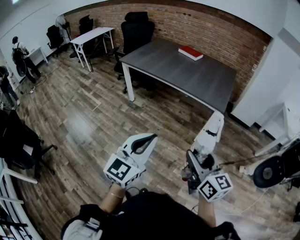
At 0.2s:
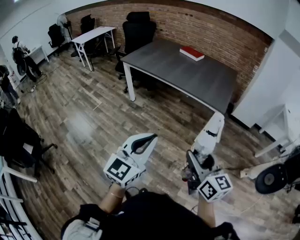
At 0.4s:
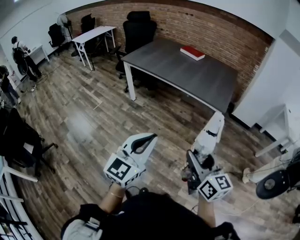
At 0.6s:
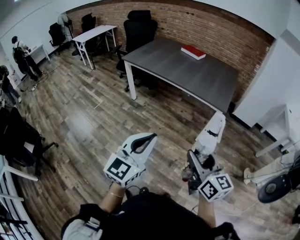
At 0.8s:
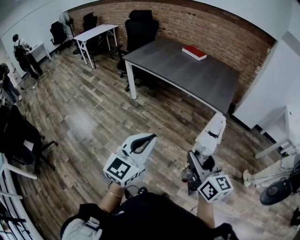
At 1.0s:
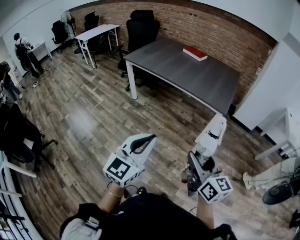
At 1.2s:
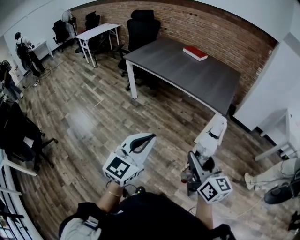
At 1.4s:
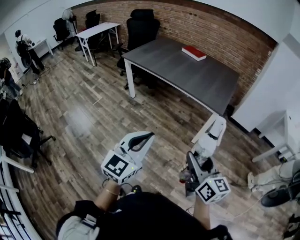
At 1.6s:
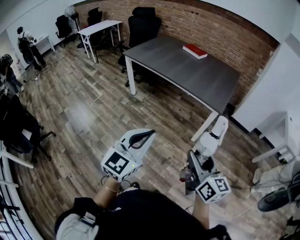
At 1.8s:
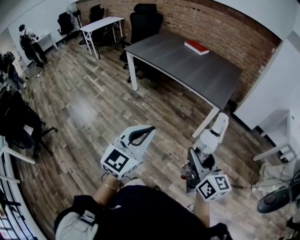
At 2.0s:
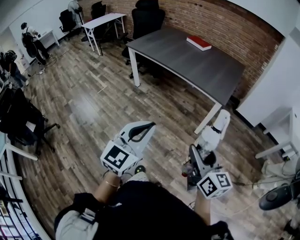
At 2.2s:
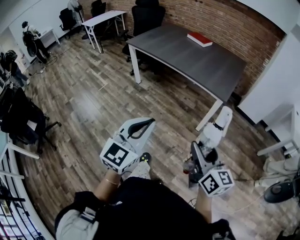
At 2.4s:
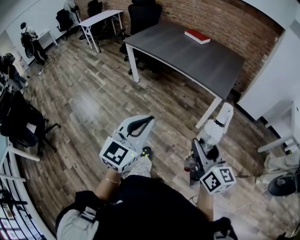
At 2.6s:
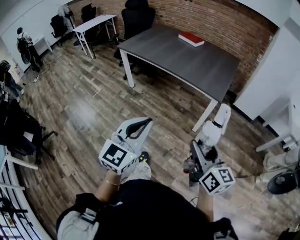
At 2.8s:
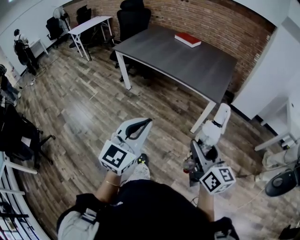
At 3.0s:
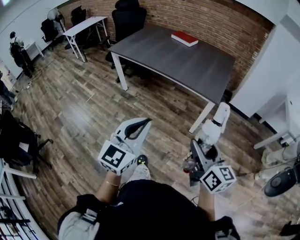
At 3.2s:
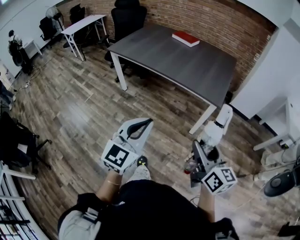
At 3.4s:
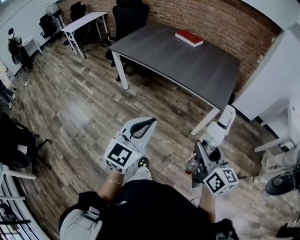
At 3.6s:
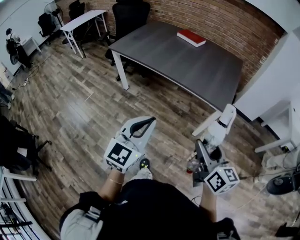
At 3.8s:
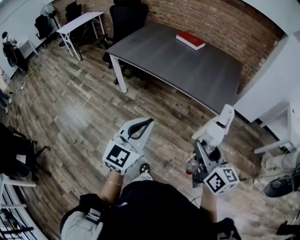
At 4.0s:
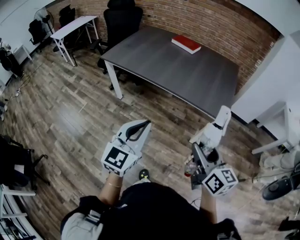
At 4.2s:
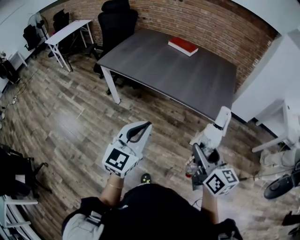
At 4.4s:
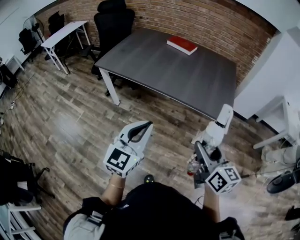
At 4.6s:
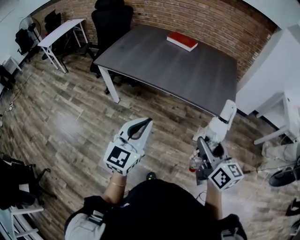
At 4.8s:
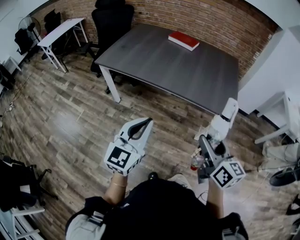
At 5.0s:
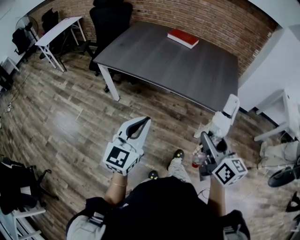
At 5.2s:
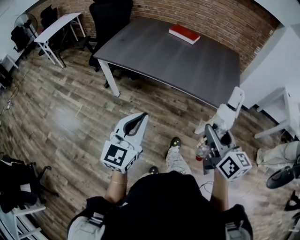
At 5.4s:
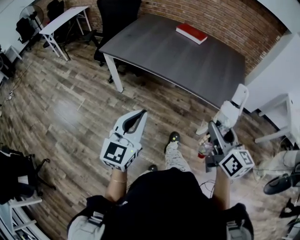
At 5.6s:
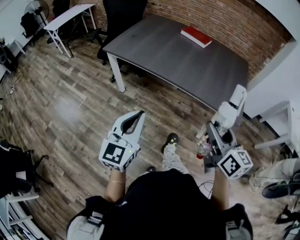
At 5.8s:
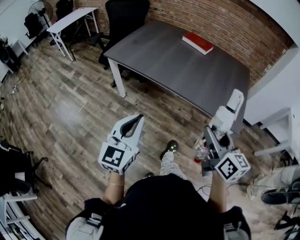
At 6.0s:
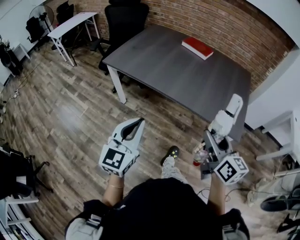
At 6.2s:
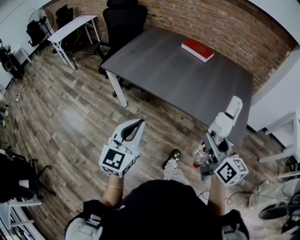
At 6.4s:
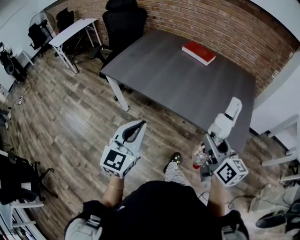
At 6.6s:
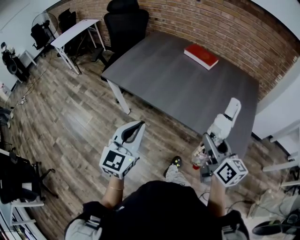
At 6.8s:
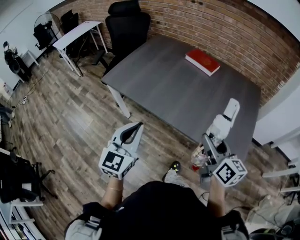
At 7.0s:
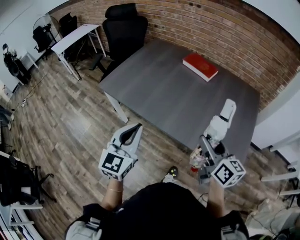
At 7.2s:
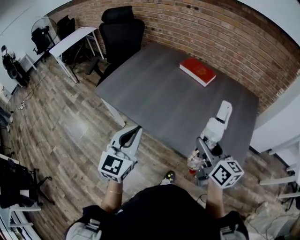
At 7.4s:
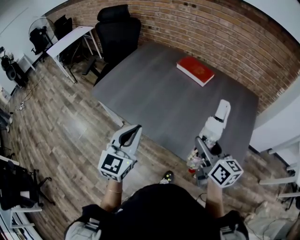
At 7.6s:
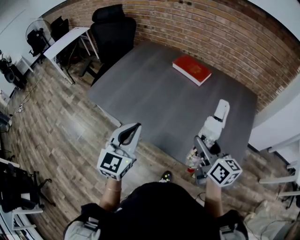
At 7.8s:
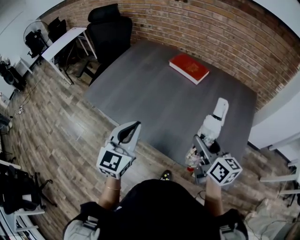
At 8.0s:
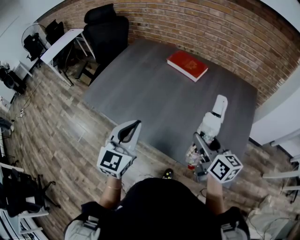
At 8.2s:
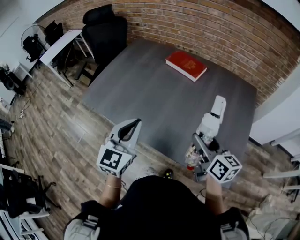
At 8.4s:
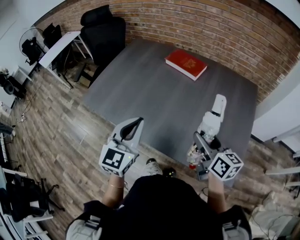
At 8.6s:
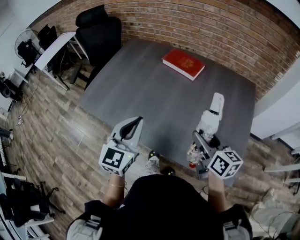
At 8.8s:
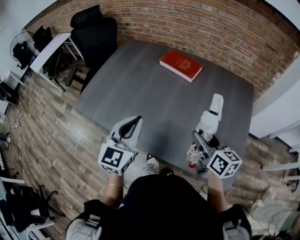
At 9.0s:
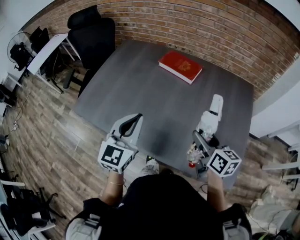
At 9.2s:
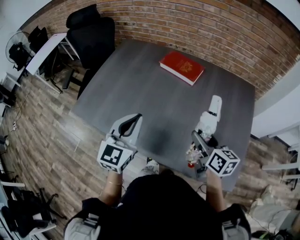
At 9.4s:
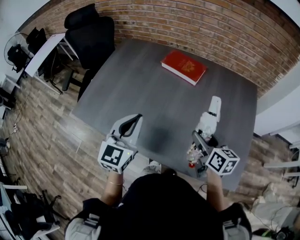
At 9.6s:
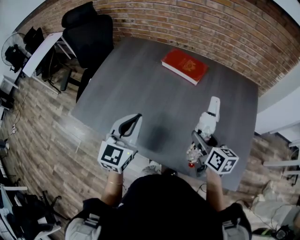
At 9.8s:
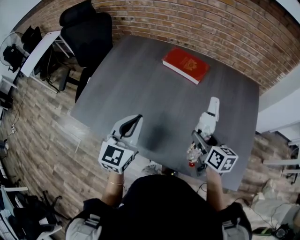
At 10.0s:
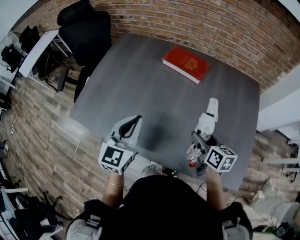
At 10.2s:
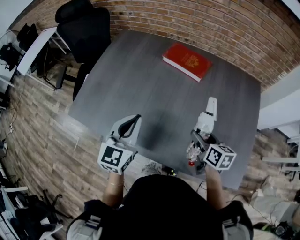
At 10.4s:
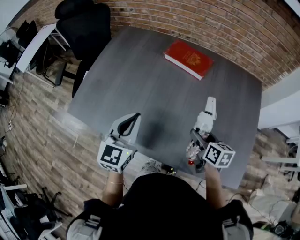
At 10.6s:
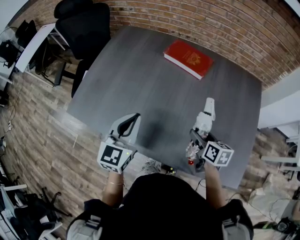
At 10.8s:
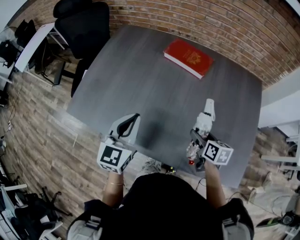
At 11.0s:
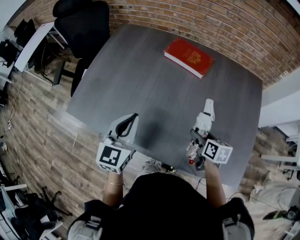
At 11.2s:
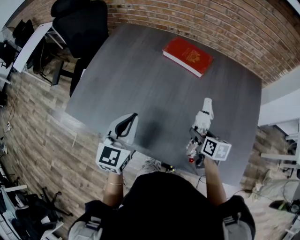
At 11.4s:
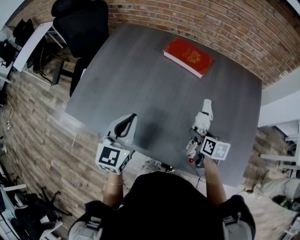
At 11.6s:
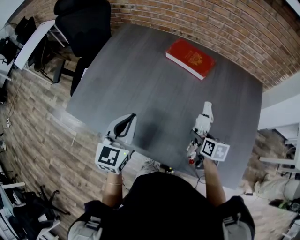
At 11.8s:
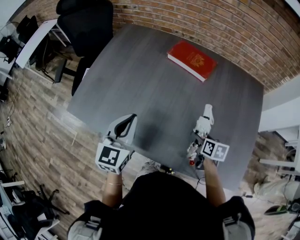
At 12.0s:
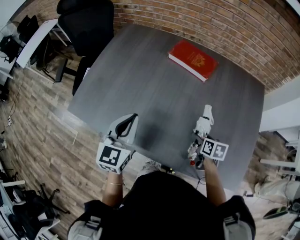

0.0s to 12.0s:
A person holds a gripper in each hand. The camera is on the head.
0.0s to 1.6s: The two grippers go about 5 cm to the right.
1.6s to 3.0s: Both grippers move forward, some 10 cm.
3.0s to 4.4s: Both grippers move forward and to the left, roughly 30 cm.
4.4s to 6.0s: The right gripper is displaced forward by some 15 cm. Meanwhile the left gripper goes approximately 15 cm to the left and forward.
6.0s to 7.6s: The right gripper moves forward, some 30 cm. The left gripper shifts about 35 cm forward and to the right.
7.6s to 9.0s: Both grippers move forward, roughly 10 cm.
9.0s to 10.4s: The right gripper heads downward, forward and to the left, covering about 15 cm, while the left gripper is displaced forward, to the left and downward by some 10 cm.
10.4s to 12.0s: The right gripper heads downward, covering some 10 cm.

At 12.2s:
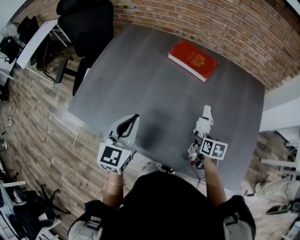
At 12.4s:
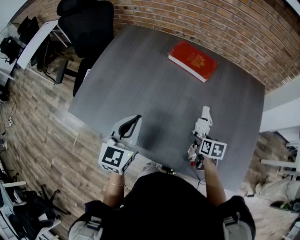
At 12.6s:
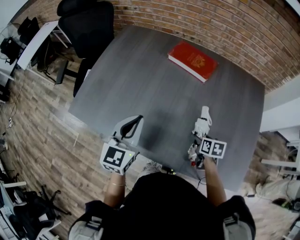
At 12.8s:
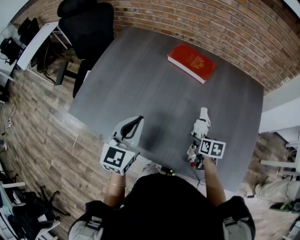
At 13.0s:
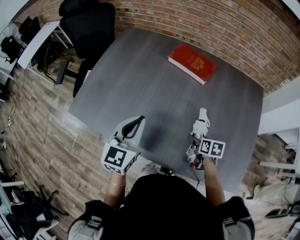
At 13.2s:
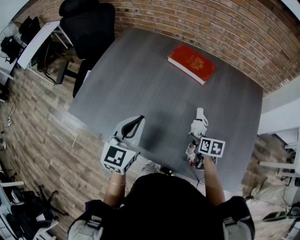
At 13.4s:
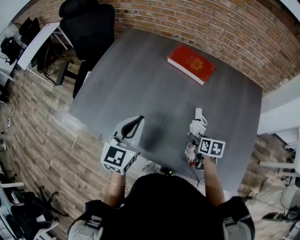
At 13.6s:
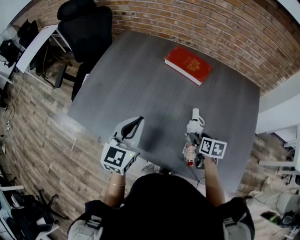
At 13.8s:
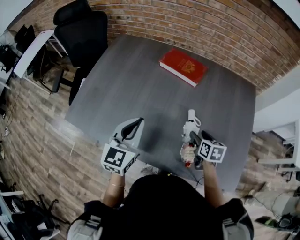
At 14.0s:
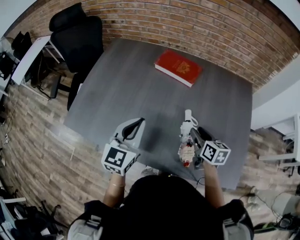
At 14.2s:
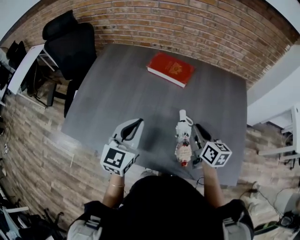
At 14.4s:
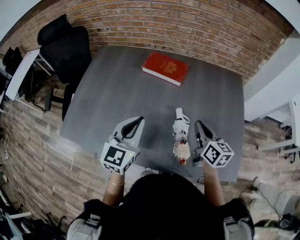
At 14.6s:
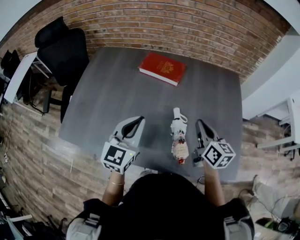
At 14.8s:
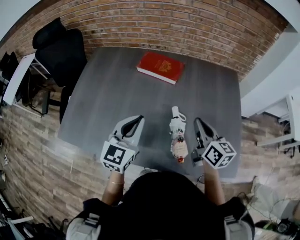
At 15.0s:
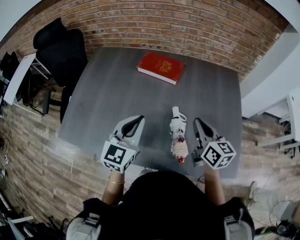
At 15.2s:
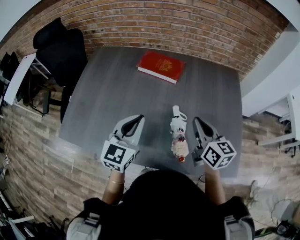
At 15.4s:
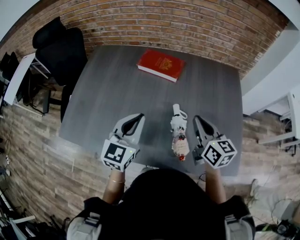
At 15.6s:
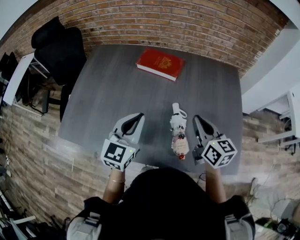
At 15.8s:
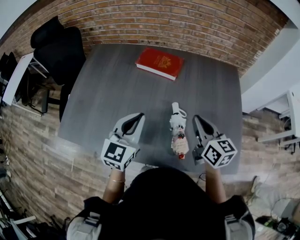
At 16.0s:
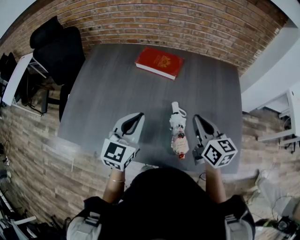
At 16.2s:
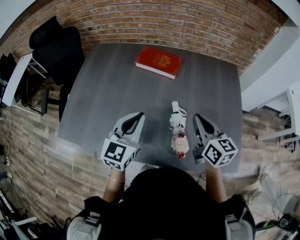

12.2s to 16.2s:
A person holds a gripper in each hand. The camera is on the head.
12.2s to 13.6s: The grippers stay close to where they were, moving slightly.
13.6s to 14.8s: The left gripper is displaced to the right by roughly 10 cm, while the right gripper moves upward, some 20 cm, tips its fingers upward by approximately 40 degrees, and closes up.
14.8s to 16.2s: The grippers move only a little.

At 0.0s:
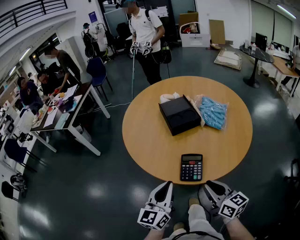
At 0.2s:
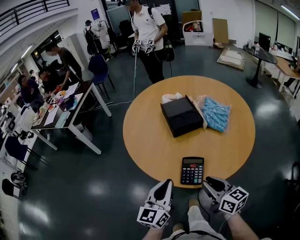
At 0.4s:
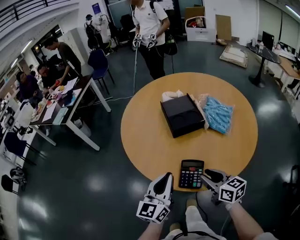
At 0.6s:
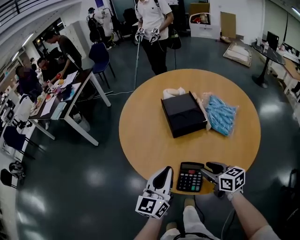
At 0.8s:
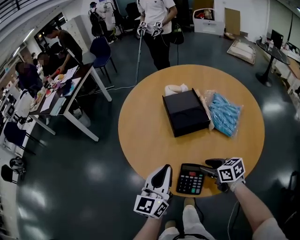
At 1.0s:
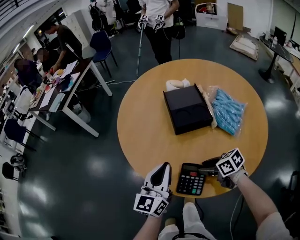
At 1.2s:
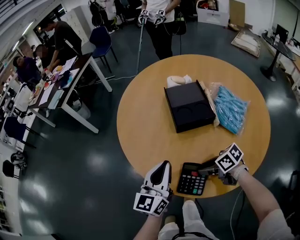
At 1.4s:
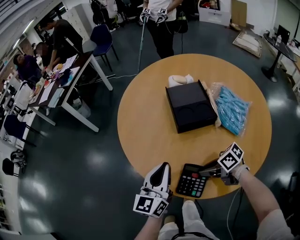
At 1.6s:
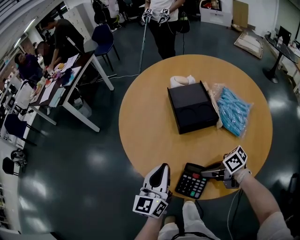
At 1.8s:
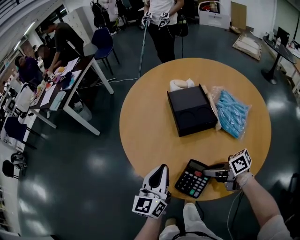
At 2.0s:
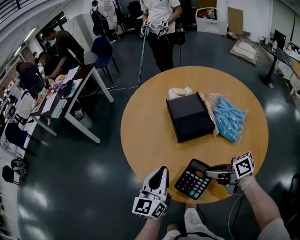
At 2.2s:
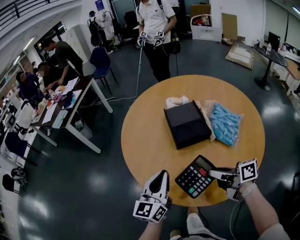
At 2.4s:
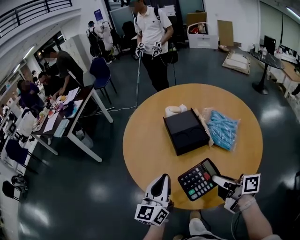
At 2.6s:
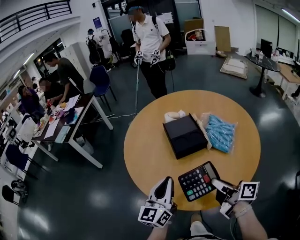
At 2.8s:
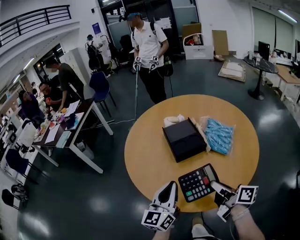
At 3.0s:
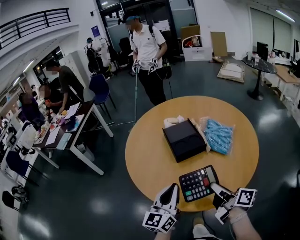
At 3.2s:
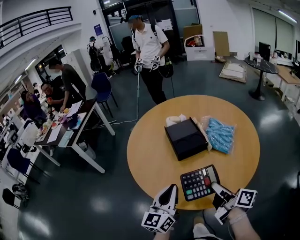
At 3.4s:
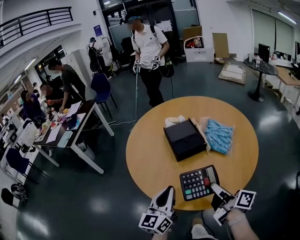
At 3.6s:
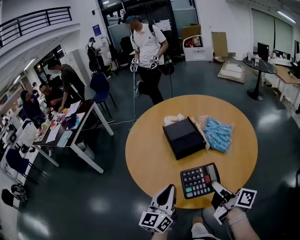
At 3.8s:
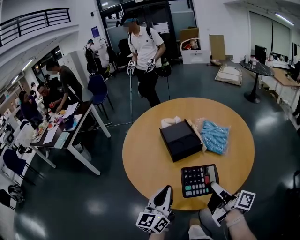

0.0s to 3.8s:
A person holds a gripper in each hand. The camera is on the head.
0.0s to 1.2s: The right gripper moves approximately 25 cm, swivels some 60 degrees, and opens up; the left gripper shifts by approximately 20 cm.
1.2s to 2.6s: The right gripper moves upward, roughly 20 cm, tips its fingers upward by roughly 40 degrees, and closes. Meanwhile the left gripper moves upward, approximately 5 cm.
2.6s to 3.8s: The right gripper rotates roughly 20 degrees. Meanwhile the left gripper changes place by some 5 cm.

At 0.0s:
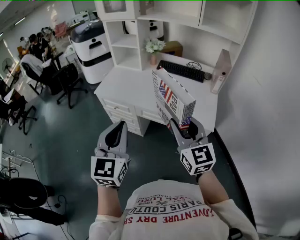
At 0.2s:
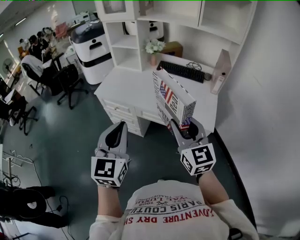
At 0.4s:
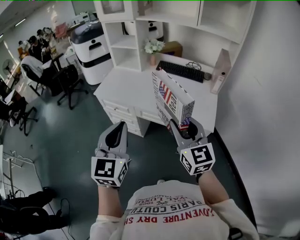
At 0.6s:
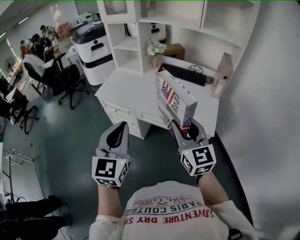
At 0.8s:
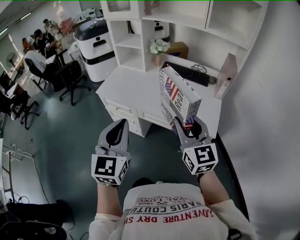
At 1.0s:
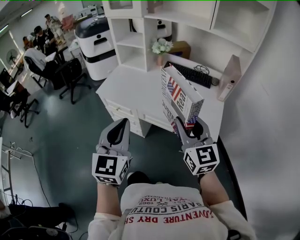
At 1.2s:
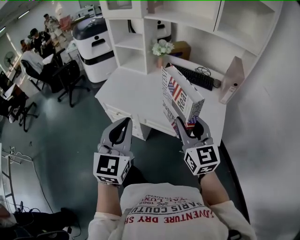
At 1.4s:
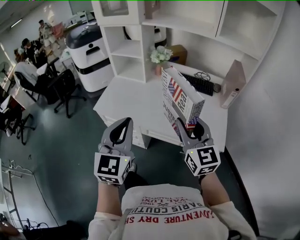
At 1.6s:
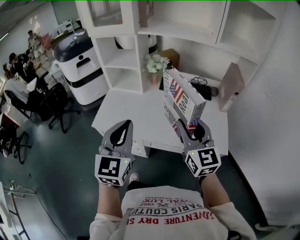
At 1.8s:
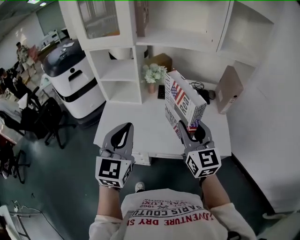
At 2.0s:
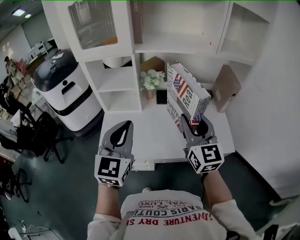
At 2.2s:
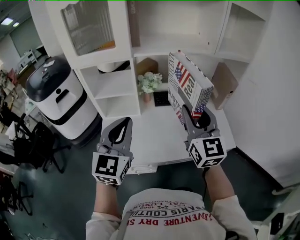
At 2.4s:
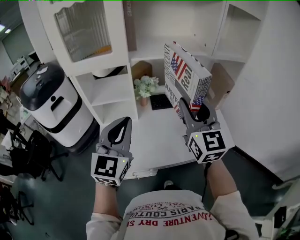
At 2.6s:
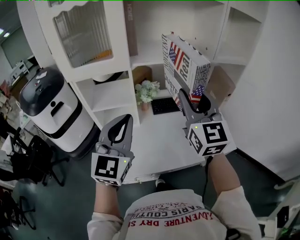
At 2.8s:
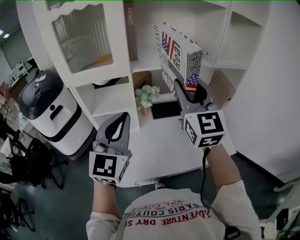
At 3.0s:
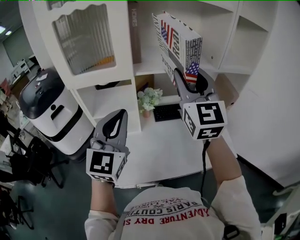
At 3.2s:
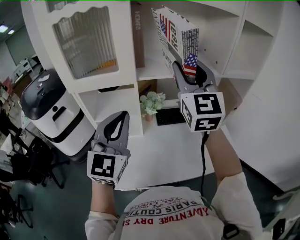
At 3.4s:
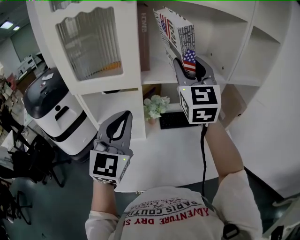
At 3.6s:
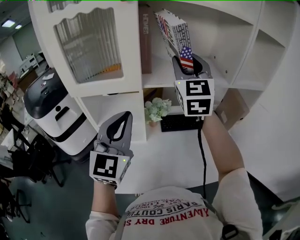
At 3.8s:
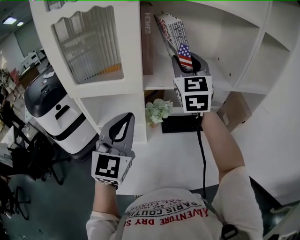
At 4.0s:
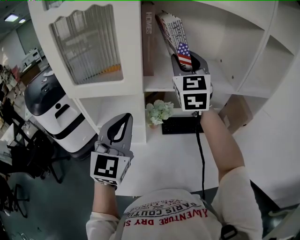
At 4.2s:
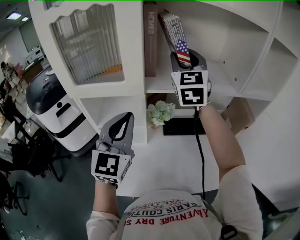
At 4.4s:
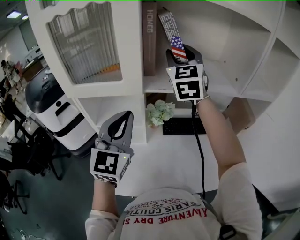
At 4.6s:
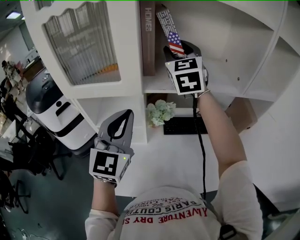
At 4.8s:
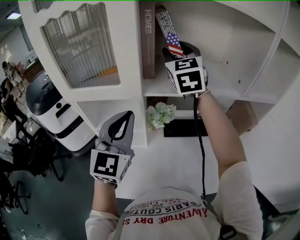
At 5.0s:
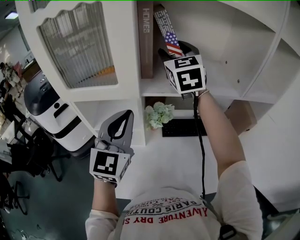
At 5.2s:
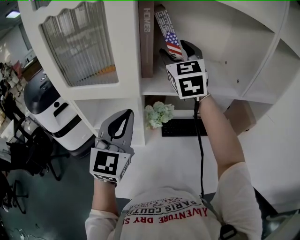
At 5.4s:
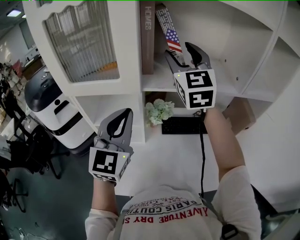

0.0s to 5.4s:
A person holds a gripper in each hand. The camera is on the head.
0.0s to 1.4s: Both grippers move forward, some 20 cm.
1.4s to 2.8s: The right gripper shifts by some 40 cm, and turns by some 40 degrees. The left gripper shifts by about 35 cm, and swivels roughly 30 degrees.
2.8s to 4.0s: The right gripper heads forward, covering about 20 cm; the left gripper heads forward, covering some 10 cm.
4.0s to 5.4s: The right gripper opens its fingers.
